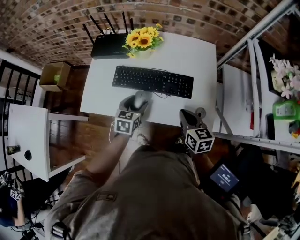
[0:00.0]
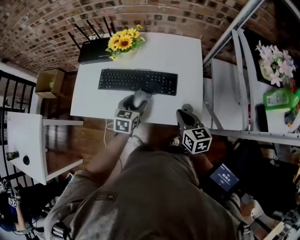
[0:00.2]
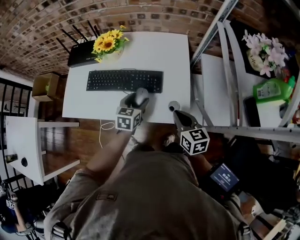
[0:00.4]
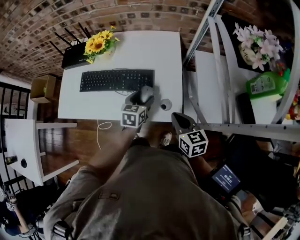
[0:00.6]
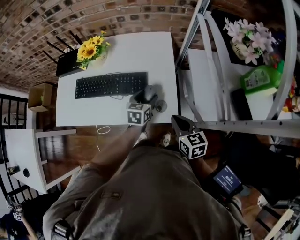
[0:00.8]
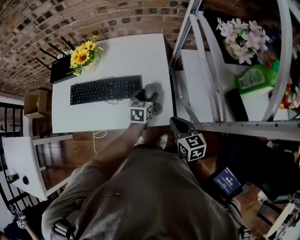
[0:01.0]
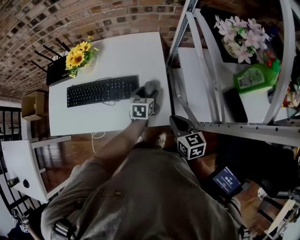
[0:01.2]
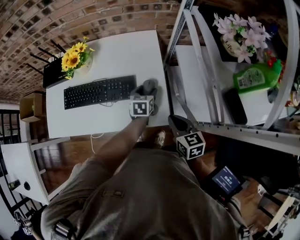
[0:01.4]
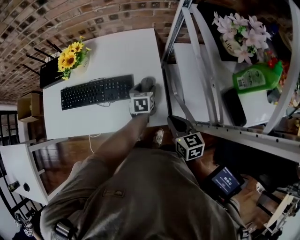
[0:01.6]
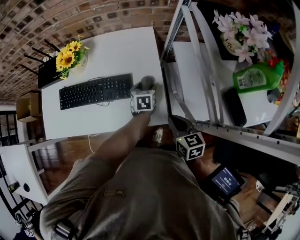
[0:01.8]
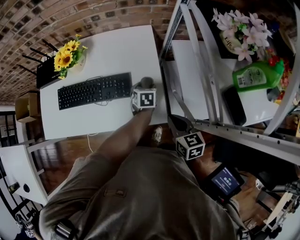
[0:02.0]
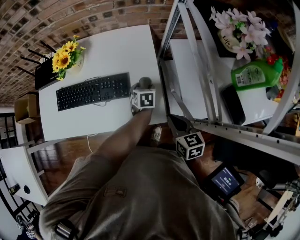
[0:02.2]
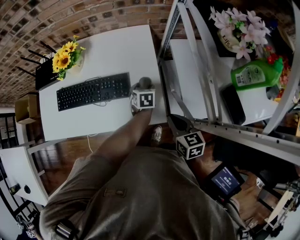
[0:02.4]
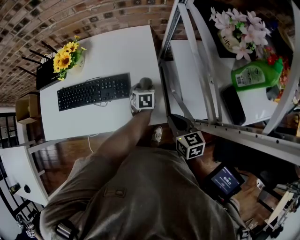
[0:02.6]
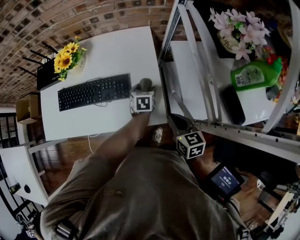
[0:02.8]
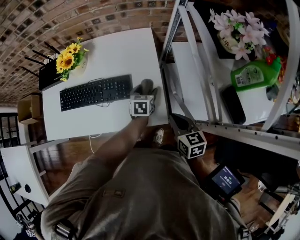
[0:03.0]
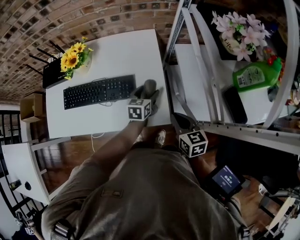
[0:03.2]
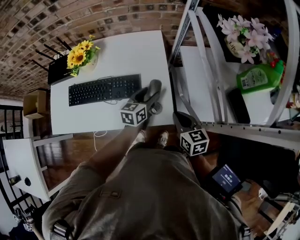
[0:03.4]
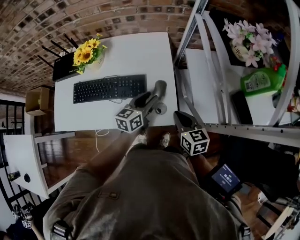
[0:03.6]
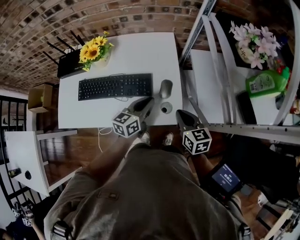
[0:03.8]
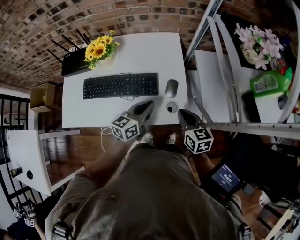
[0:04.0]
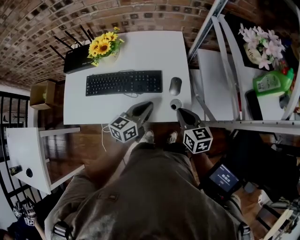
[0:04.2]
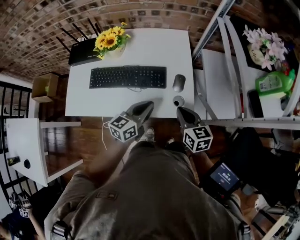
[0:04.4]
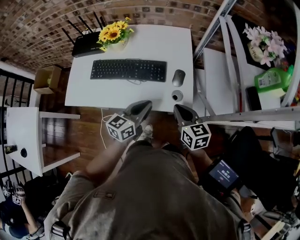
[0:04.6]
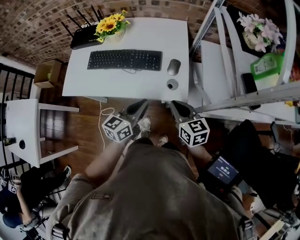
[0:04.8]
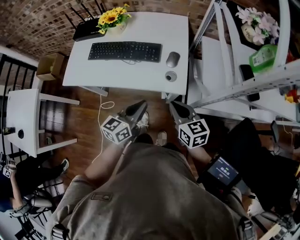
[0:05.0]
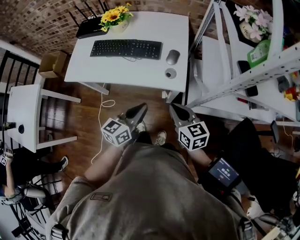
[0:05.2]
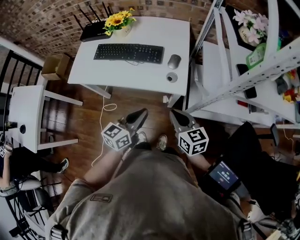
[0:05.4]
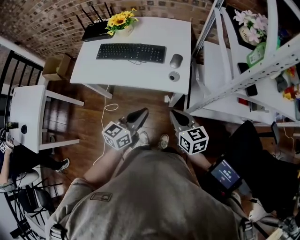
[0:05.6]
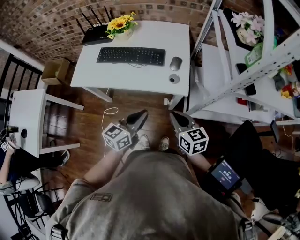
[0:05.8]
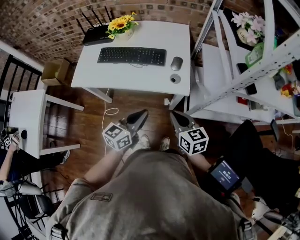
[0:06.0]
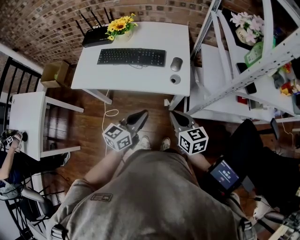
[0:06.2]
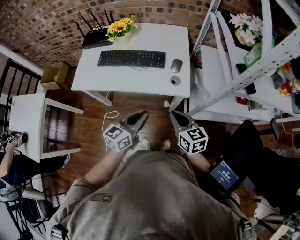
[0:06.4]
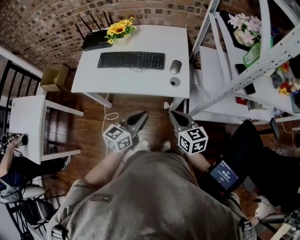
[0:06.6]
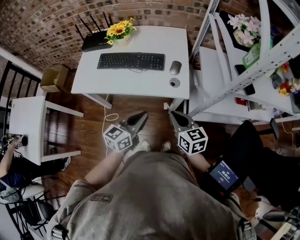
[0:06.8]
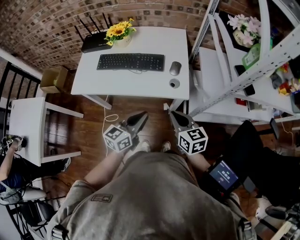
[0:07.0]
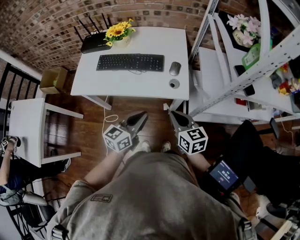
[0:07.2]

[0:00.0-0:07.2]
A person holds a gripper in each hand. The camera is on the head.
0:00.0 to 0:01.4: The left gripper travels to the right by some 35 cm; the right gripper moves to the right, about 20 cm.
0:01.4 to 0:02.8: The grippers move only a little.
0:02.8 to 0:04.4: The right gripper moves to the left, some 10 cm. Meanwhile the left gripper goes approximately 25 cm backward, upward and to the left, tips its fingers upward by approximately 40 degrees, and closes.
0:04.4 to 0:05.8: The grippers both shift backward by roughly 20 cm.
0:05.8 to 0:07.2: The grippers make only small movements.

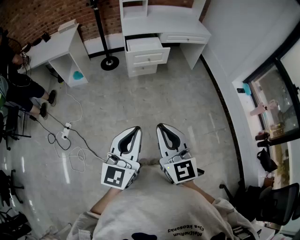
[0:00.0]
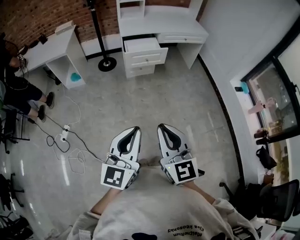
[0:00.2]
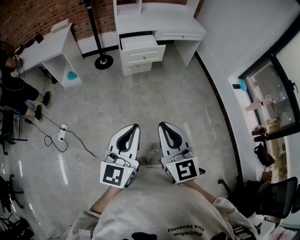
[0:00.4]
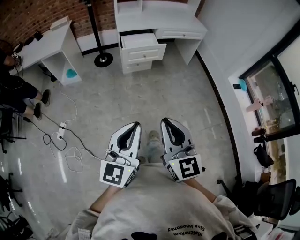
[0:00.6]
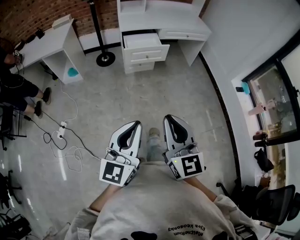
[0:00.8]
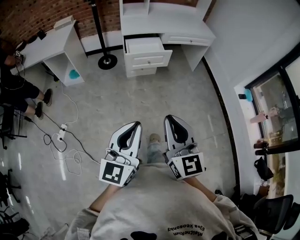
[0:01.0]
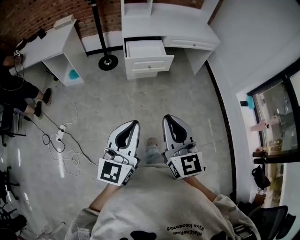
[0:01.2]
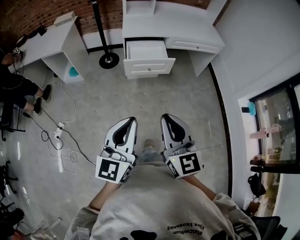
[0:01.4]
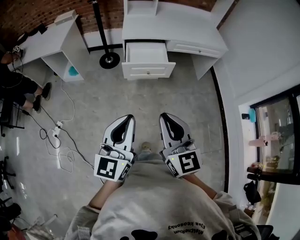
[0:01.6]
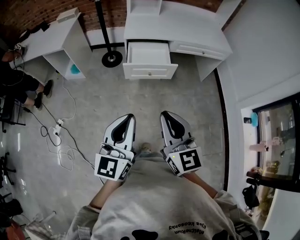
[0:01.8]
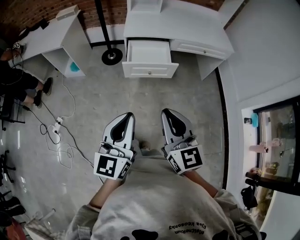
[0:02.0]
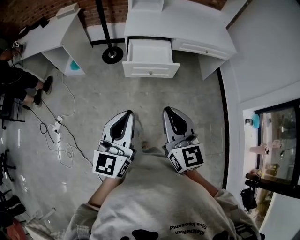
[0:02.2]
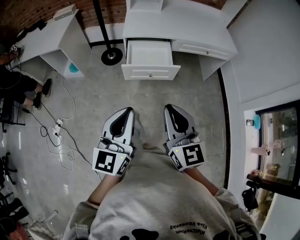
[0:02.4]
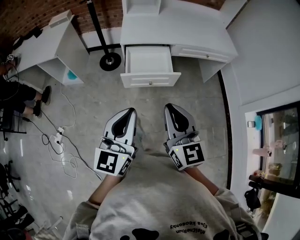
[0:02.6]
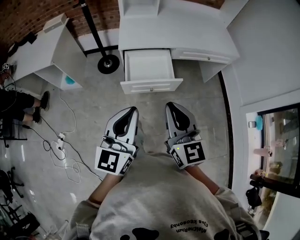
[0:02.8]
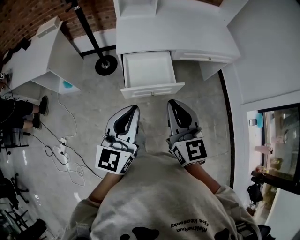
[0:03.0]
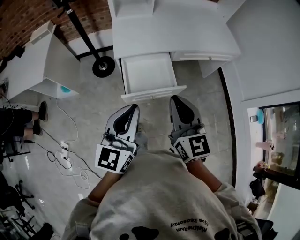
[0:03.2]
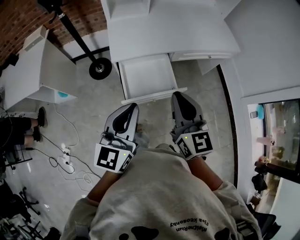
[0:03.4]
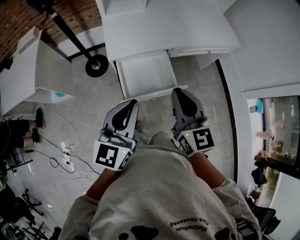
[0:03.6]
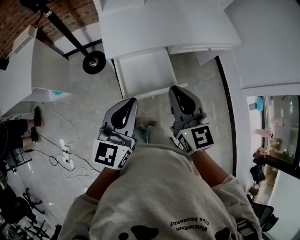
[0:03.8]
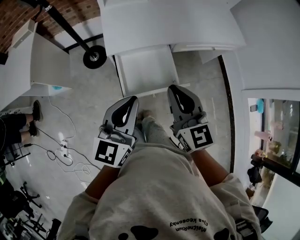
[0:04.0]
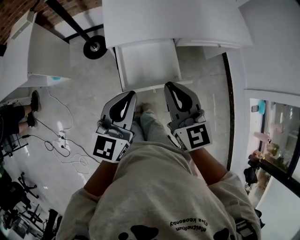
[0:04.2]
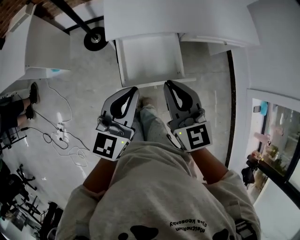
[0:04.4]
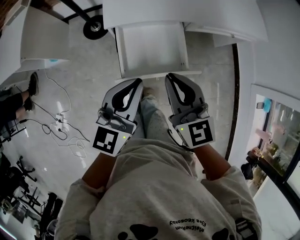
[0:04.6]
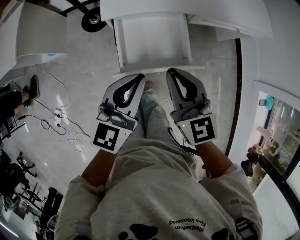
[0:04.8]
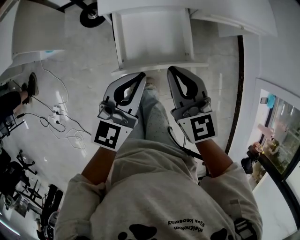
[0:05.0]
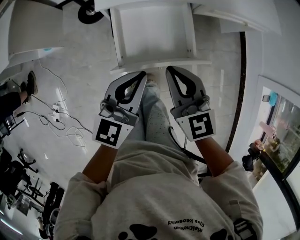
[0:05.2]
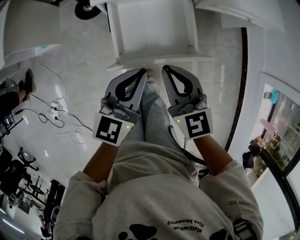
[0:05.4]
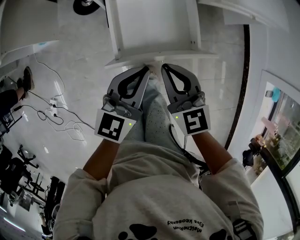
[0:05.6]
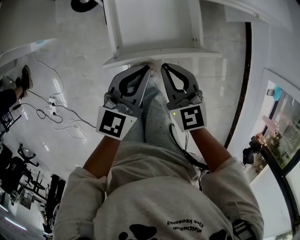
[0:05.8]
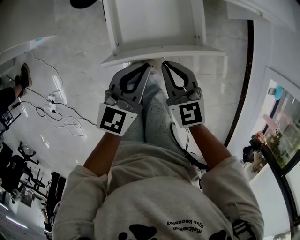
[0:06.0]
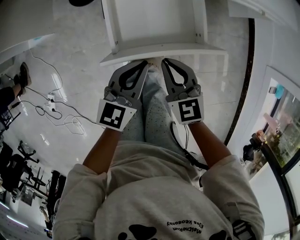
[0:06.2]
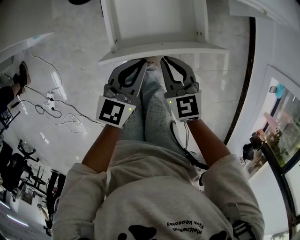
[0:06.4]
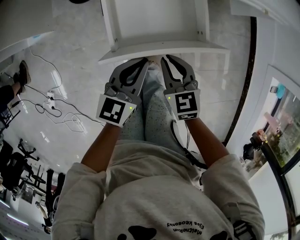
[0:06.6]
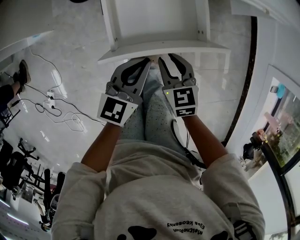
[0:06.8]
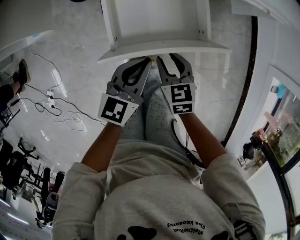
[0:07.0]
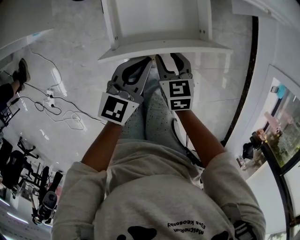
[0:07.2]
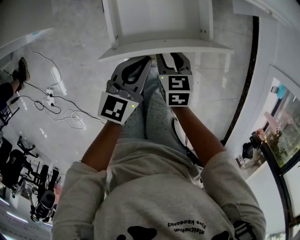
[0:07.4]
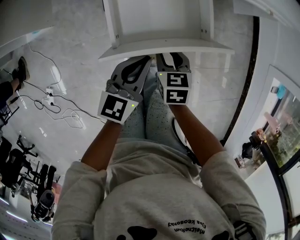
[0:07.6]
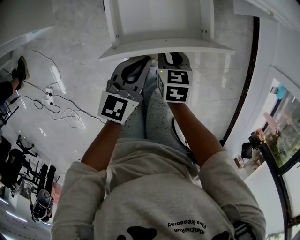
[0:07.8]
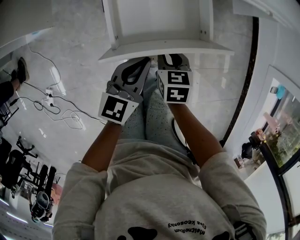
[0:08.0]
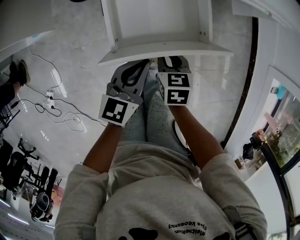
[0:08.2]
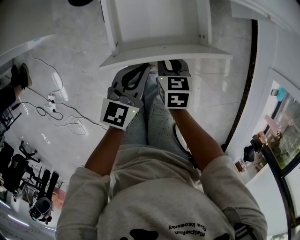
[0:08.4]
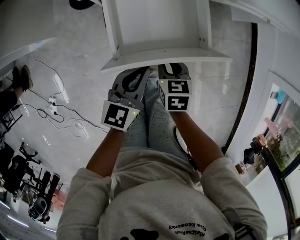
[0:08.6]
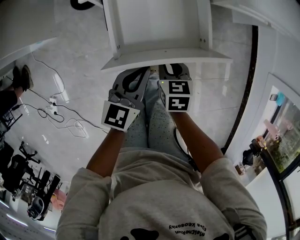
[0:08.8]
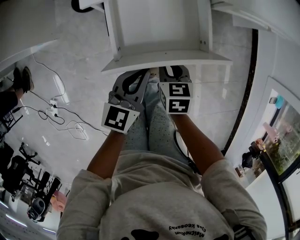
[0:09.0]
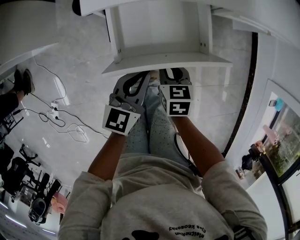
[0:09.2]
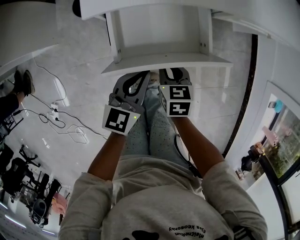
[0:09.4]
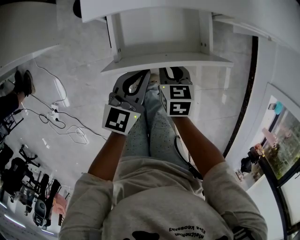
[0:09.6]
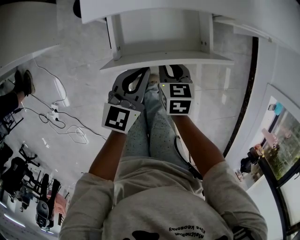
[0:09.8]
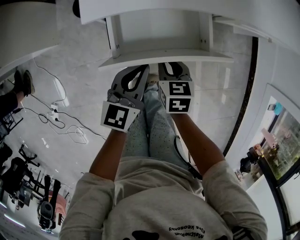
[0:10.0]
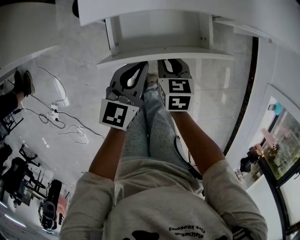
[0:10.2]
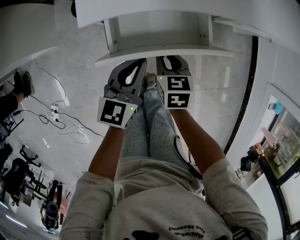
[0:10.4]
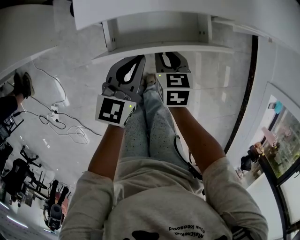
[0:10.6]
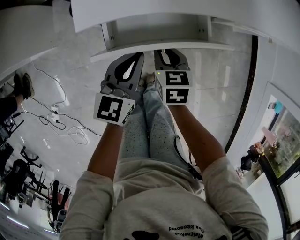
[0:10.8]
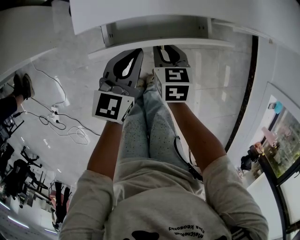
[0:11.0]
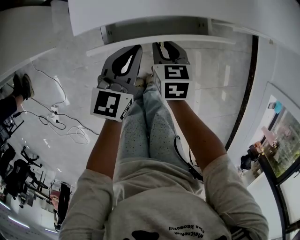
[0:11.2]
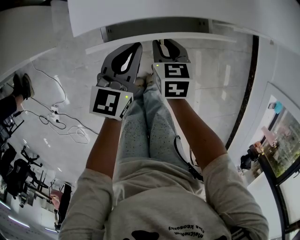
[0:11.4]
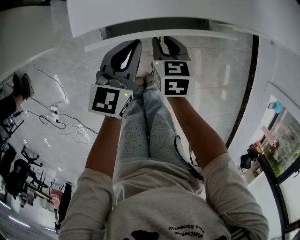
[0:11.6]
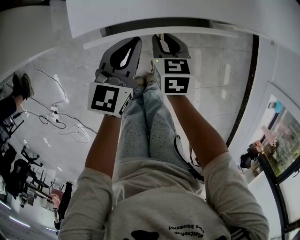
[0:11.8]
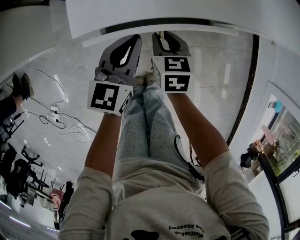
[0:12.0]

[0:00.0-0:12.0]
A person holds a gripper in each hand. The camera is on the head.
0:00.0 to 0:01.6: The two grippers go about 35 cm forward.
0:01.6 to 0:03.0: The grippers both shift forward by approximately 30 cm.
0:03.0 to 0:04.4: Both grippers travel together forward and downward, about 20 cm.
0:04.4 to 0:06.0: The grippers both shift downward by roughly 25 cm.
0:06.0 to 0:07.6: The right gripper moves downward, roughly 15 cm, turns by about 30 degrees, and opens. The left gripper moves downward, some 5 cm.
0:07.6 to 0:09.0: Both grippers travel together forward, roughly 5 cm.
0:09.0 to 0:10.4: The grippers both shift forward by some 10 cm.
0:10.4 to 0:12.0: Both grippers travel together forward, some 10 cm.

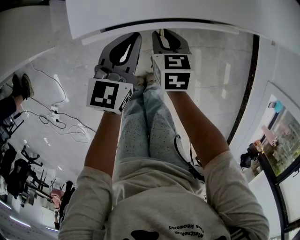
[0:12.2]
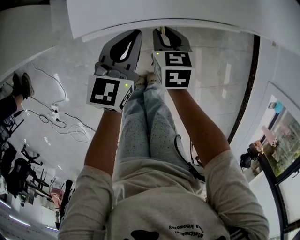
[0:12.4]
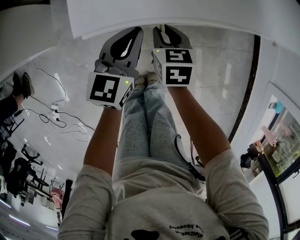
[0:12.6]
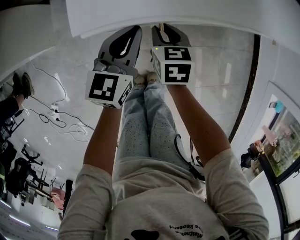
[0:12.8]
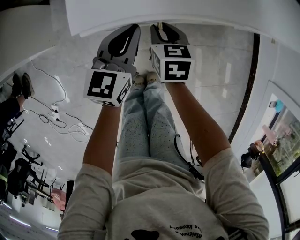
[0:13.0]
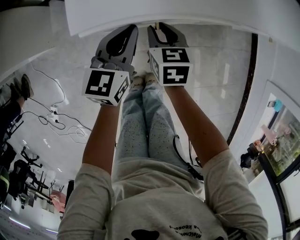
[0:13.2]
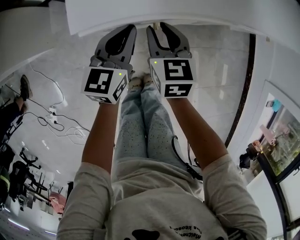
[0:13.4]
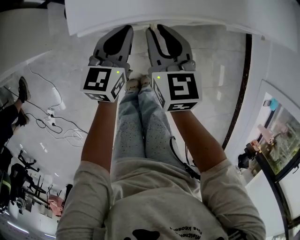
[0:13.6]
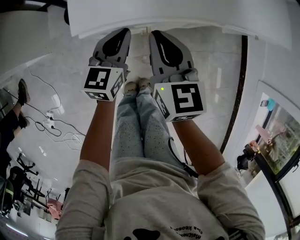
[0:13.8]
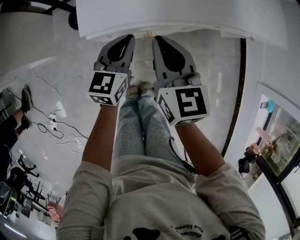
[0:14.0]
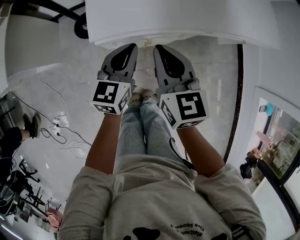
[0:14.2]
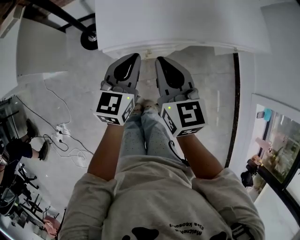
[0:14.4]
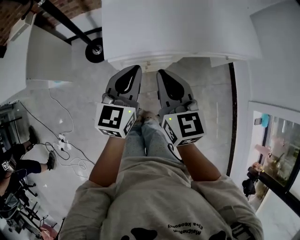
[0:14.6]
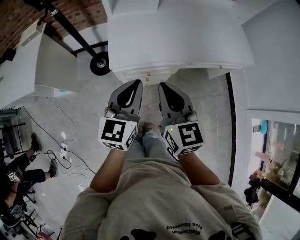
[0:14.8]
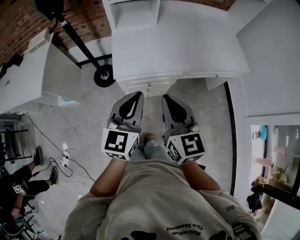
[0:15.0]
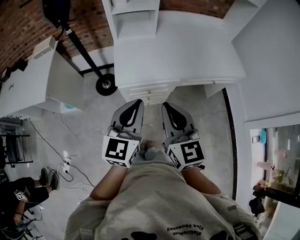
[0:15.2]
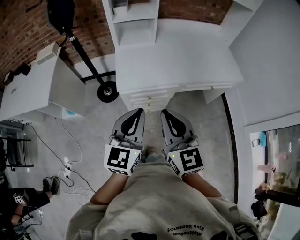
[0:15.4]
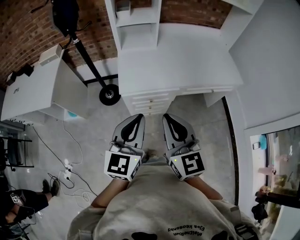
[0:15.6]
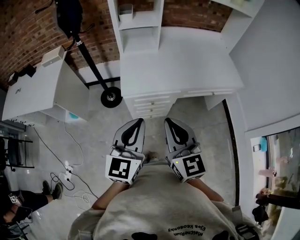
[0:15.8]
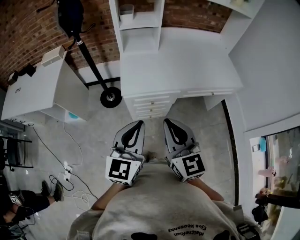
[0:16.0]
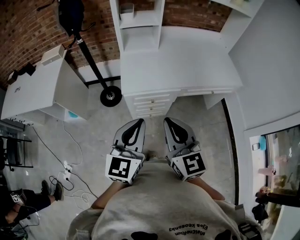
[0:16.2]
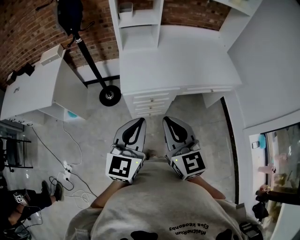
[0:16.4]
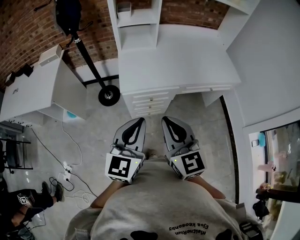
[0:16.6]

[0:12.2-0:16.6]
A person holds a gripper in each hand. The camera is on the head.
0:12.2 to 0:13.6: The right gripper shifts about 10 cm upward, and swivels approximately 20 degrees.
0:13.6 to 0:15.2: Both grippers move upward and backward, roughly 40 cm. The right gripper rotates approximately 20 degrees.
0:15.2 to 0:16.6: The grippers both shift backward by about 10 cm.
